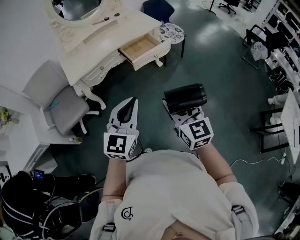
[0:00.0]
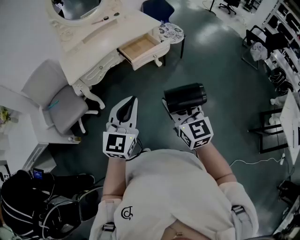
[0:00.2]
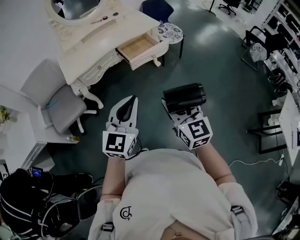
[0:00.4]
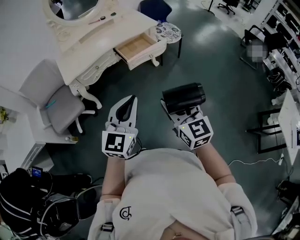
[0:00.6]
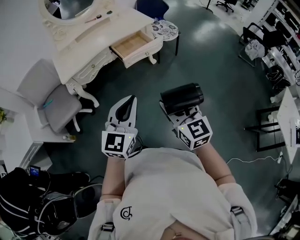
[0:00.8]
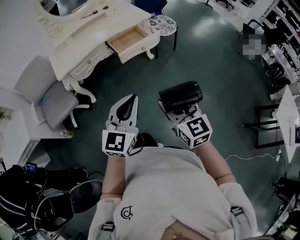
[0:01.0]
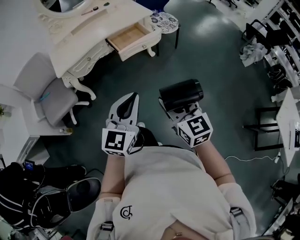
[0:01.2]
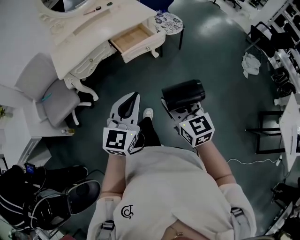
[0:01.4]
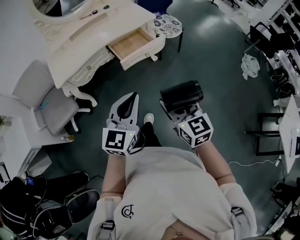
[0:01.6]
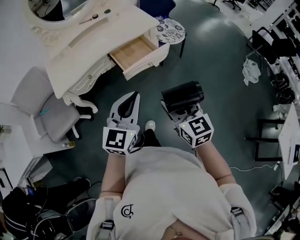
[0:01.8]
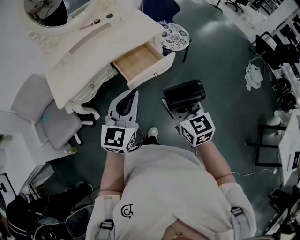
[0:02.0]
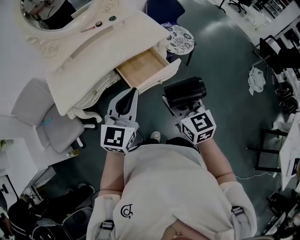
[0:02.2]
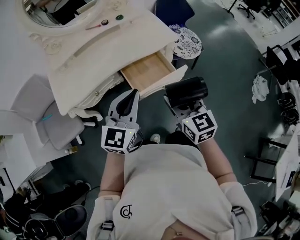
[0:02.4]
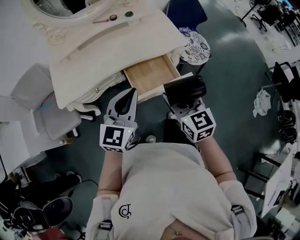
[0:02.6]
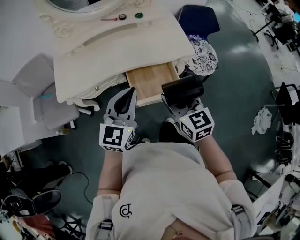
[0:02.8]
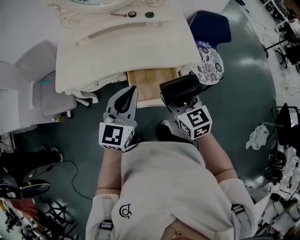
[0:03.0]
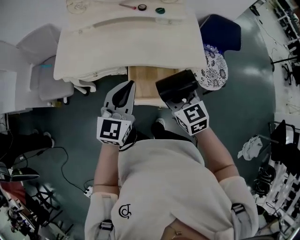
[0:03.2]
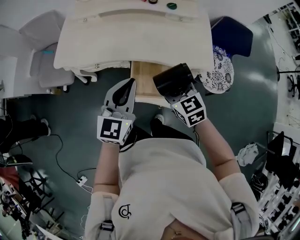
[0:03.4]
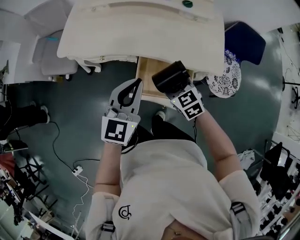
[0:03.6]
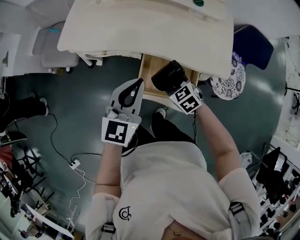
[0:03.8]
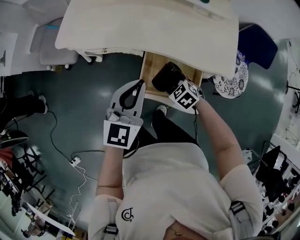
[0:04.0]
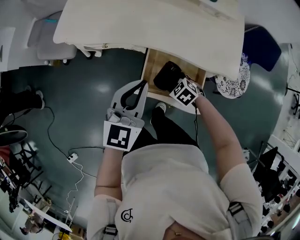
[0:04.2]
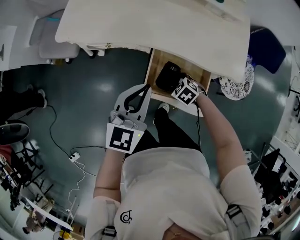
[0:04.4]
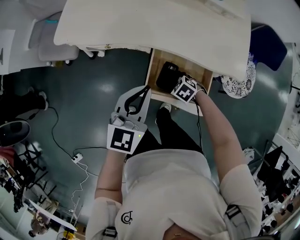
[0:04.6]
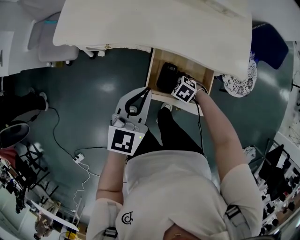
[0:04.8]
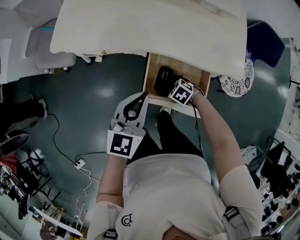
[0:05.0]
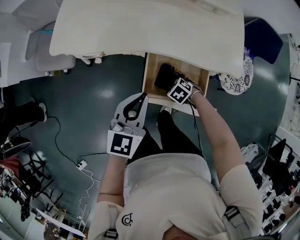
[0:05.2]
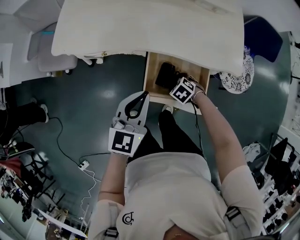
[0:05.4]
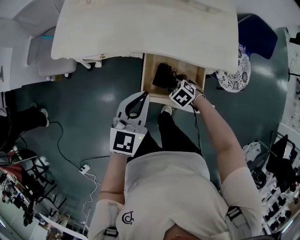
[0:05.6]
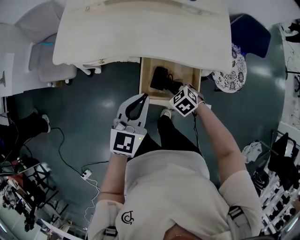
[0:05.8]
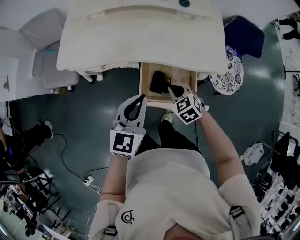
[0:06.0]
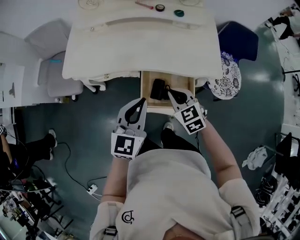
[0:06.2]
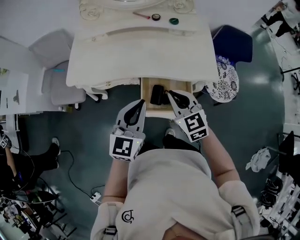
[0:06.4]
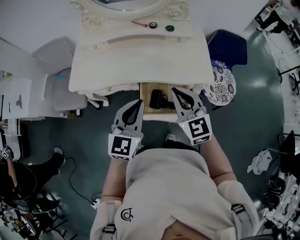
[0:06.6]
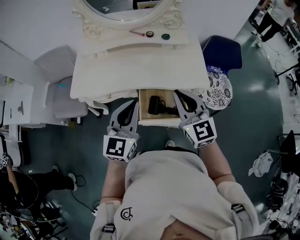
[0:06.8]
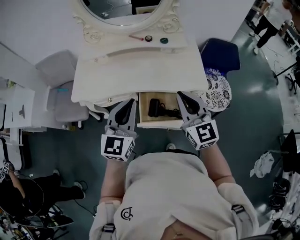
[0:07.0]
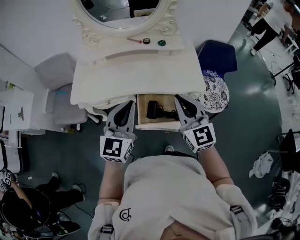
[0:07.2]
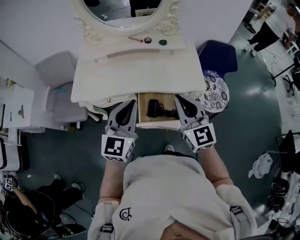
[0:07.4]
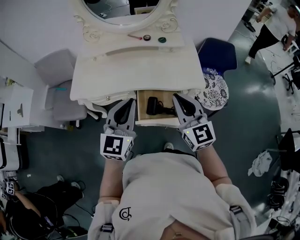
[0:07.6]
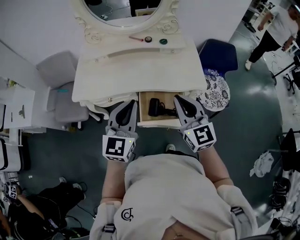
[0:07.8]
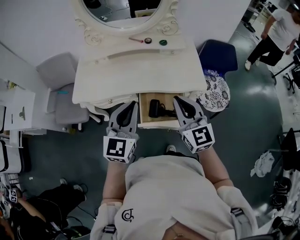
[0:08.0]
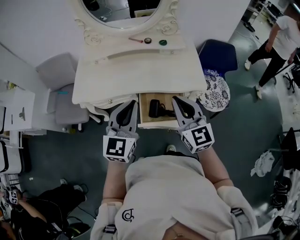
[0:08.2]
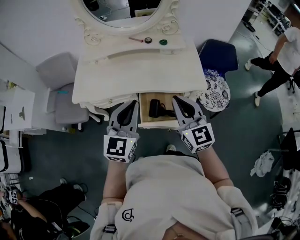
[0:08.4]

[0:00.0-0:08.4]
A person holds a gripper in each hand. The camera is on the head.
0:00.0 to 0:01.4: The right gripper heads to the right and downward, covering approximately 10 cm; the left gripper heads to the right, covering about 10 cm.
0:01.4 to 0:02.8: The pair of grippers is taken forward, some 50 cm. The right gripper rotates approximately 20 degrees.
0:02.8 to 0:04.2: The right gripper heads downward, covering some 35 cm, and points its fingers about 50 degrees further downward. Meanwhile the left gripper is displaced downward by about 10 cm, and changes its angle by approximately 20 degrees.
0:04.2 to 0:05.6: The grippers move only a little.
0:05.6 to 0:07.0: The left gripper goes some 15 cm upward, while the right gripper moves upward, roughly 40 cm, points its fingers roughly 70 degrees further upward, and closes its fingers.
0:07.0 to 0:08.4: The grippers move only a little.

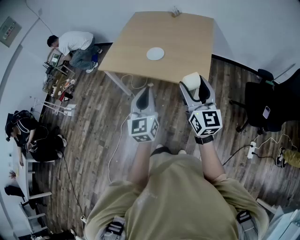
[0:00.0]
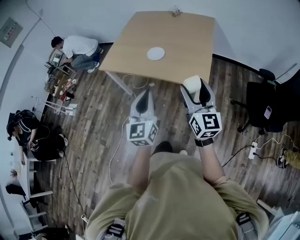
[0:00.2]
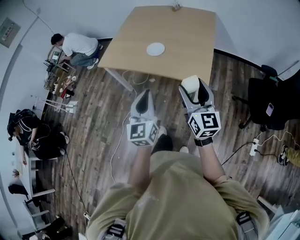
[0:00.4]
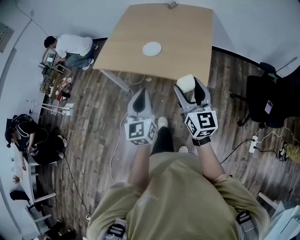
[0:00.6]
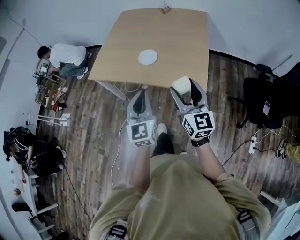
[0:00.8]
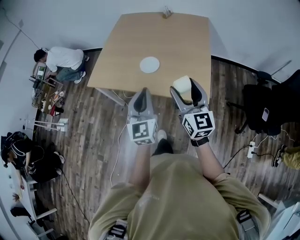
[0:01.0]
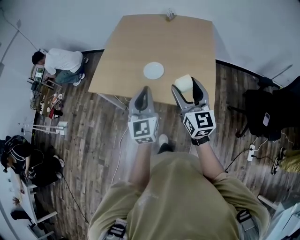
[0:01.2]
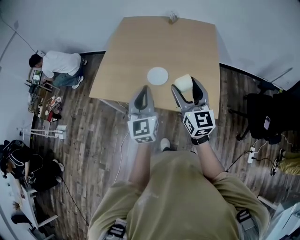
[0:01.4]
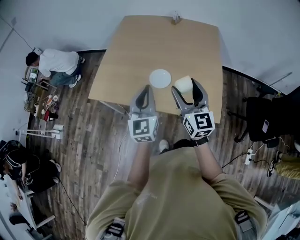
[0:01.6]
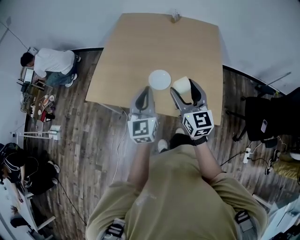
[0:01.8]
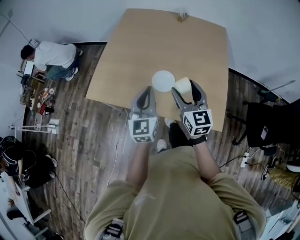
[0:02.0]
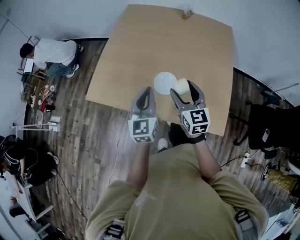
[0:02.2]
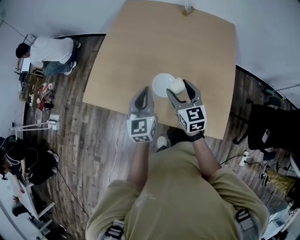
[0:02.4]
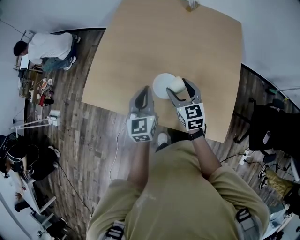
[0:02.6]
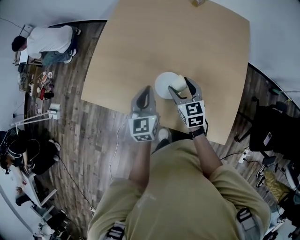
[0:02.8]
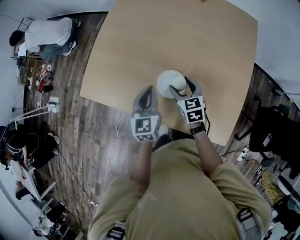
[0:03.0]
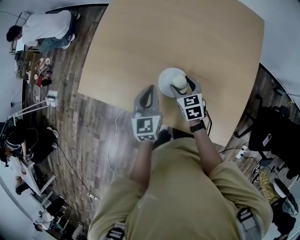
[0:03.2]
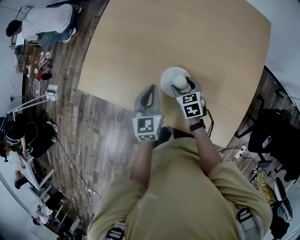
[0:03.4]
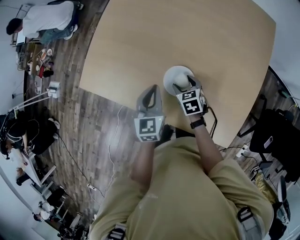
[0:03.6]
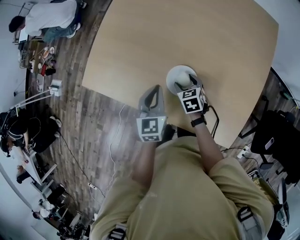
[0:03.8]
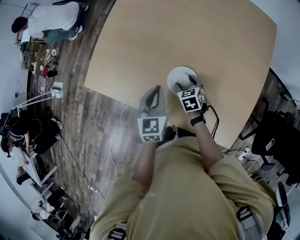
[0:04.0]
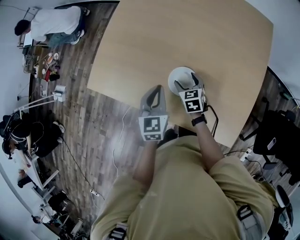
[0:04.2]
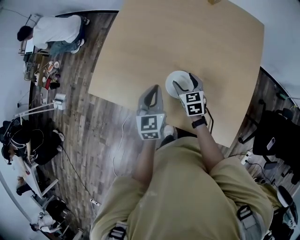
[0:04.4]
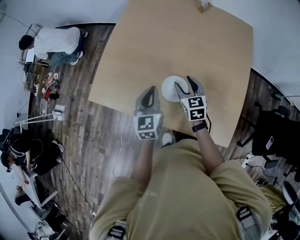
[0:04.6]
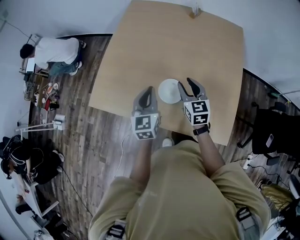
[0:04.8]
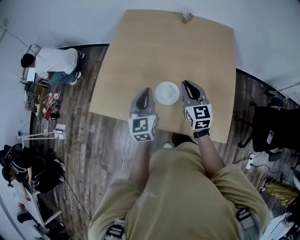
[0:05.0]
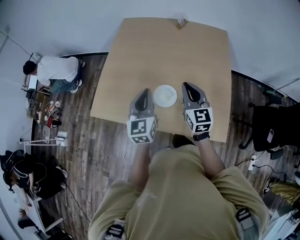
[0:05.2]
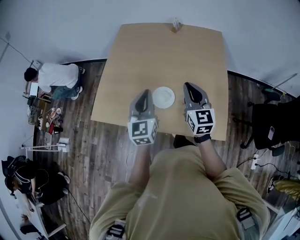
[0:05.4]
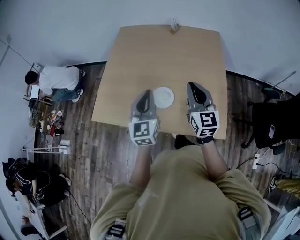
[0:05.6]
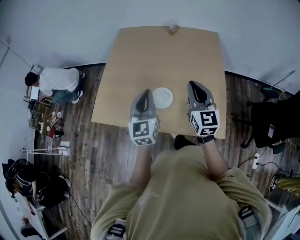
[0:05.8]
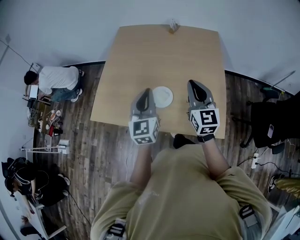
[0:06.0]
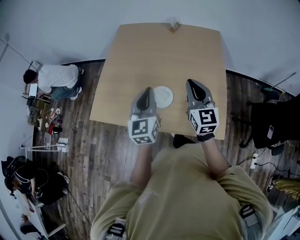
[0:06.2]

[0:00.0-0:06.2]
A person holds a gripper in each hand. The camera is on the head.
0:00.0 to 0:01.6: The left gripper is displaced forward by approximately 35 cm, while the right gripper goes about 35 cm forward and to the left.
0:01.6 to 0:03.2: The right gripper shifts roughly 40 cm downward and forward, and angles its fingers downward, by roughly 50 degrees; the left gripper goes approximately 30 cm forward and downward, and swivels approximately 30 degrees.
0:03.2 to 0:04.6: Both grippers travel together upward, some 10 cm.
0:04.6 to 0:06.2: Both grippers travel together upward, backward and to the right, roughly 25 cm. The right gripper swivels about 30 degrees, and closes its fingers.

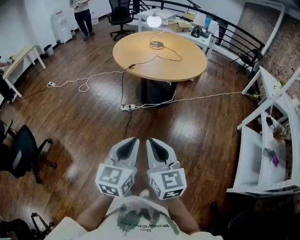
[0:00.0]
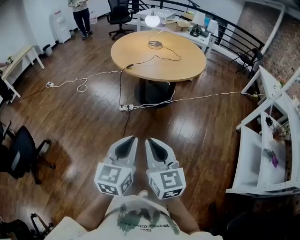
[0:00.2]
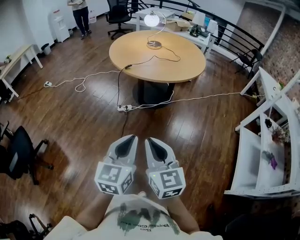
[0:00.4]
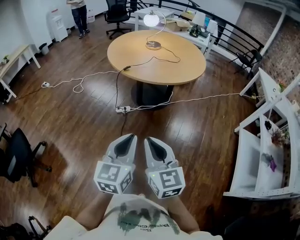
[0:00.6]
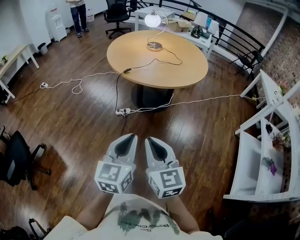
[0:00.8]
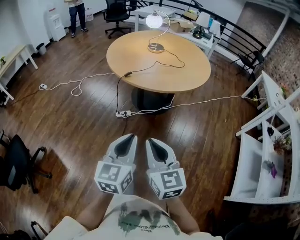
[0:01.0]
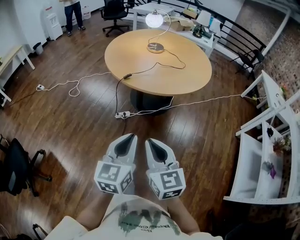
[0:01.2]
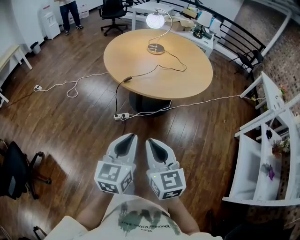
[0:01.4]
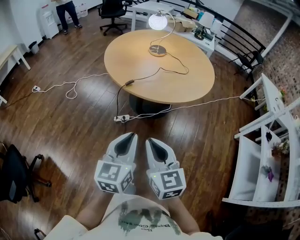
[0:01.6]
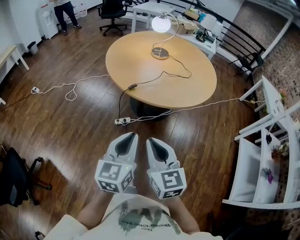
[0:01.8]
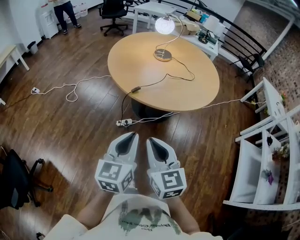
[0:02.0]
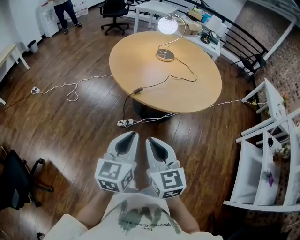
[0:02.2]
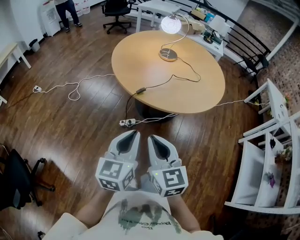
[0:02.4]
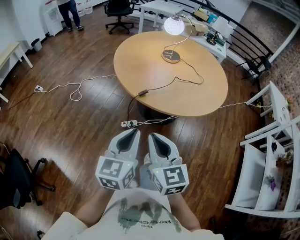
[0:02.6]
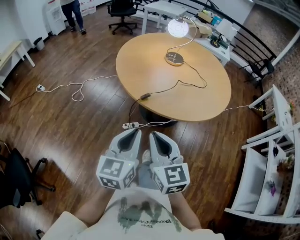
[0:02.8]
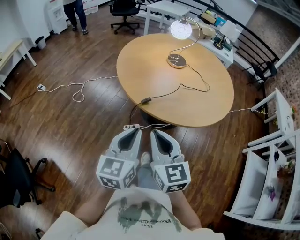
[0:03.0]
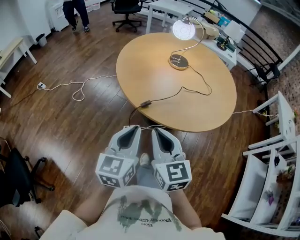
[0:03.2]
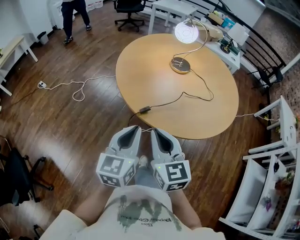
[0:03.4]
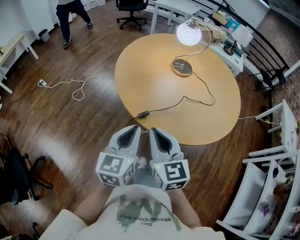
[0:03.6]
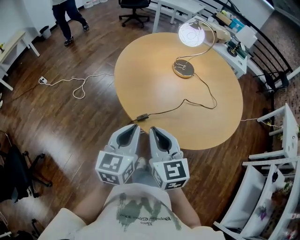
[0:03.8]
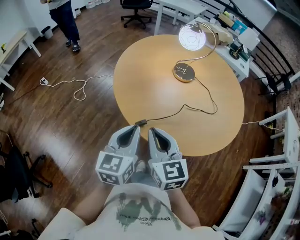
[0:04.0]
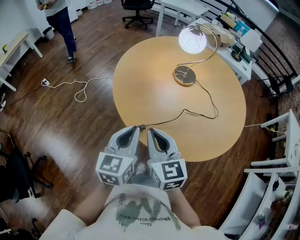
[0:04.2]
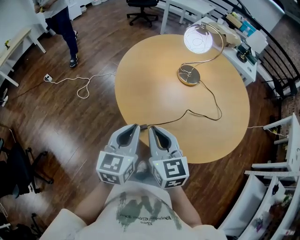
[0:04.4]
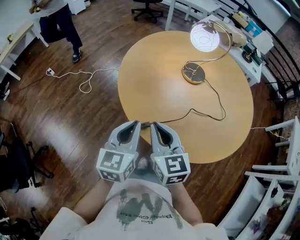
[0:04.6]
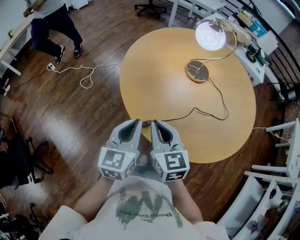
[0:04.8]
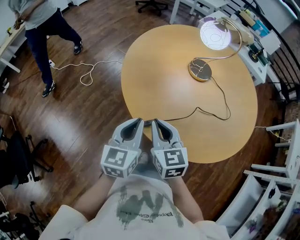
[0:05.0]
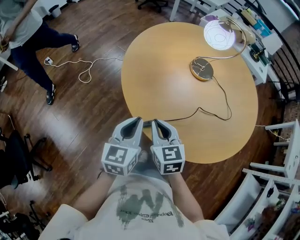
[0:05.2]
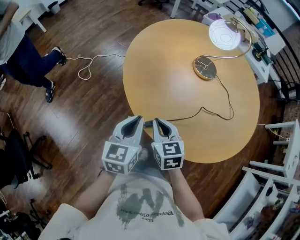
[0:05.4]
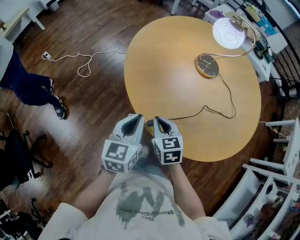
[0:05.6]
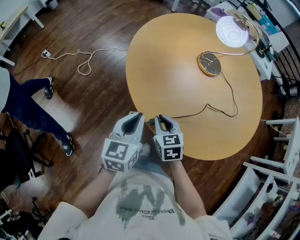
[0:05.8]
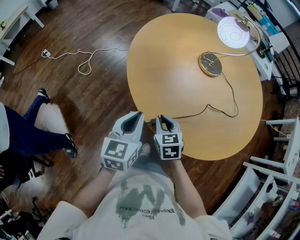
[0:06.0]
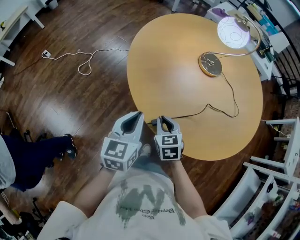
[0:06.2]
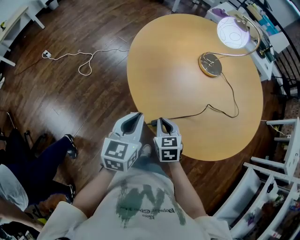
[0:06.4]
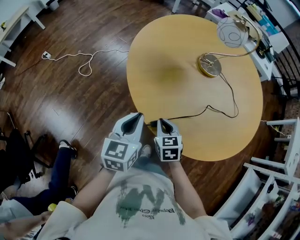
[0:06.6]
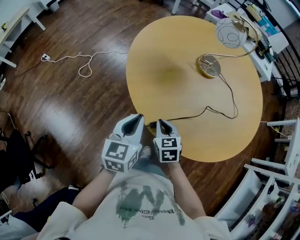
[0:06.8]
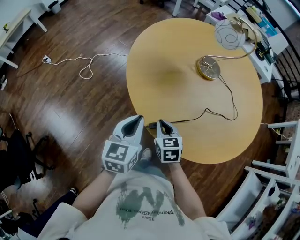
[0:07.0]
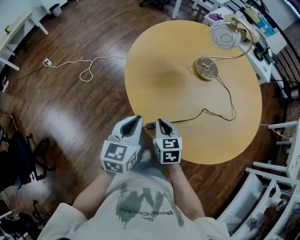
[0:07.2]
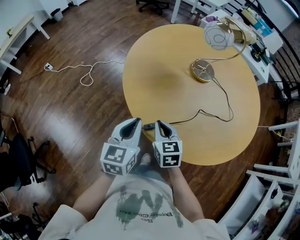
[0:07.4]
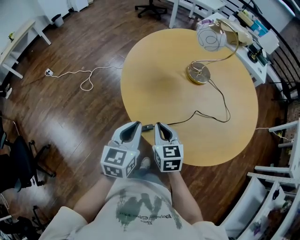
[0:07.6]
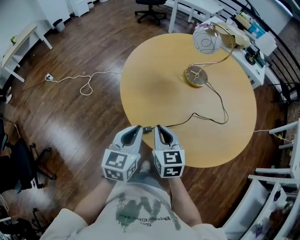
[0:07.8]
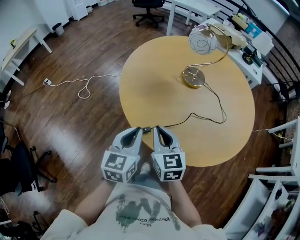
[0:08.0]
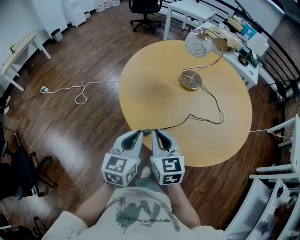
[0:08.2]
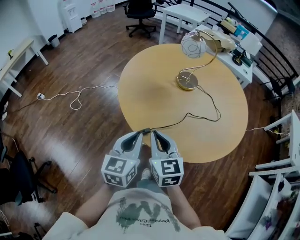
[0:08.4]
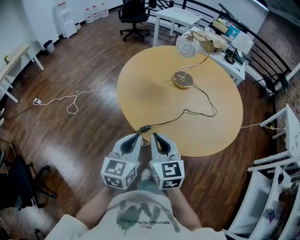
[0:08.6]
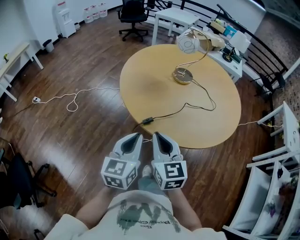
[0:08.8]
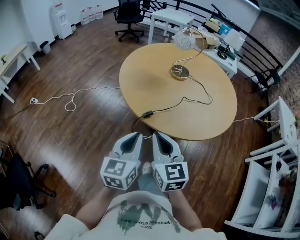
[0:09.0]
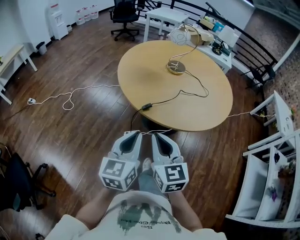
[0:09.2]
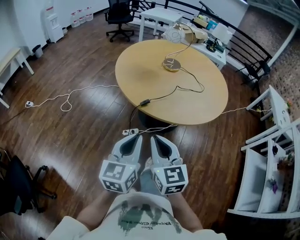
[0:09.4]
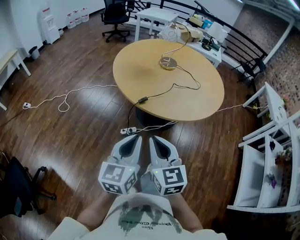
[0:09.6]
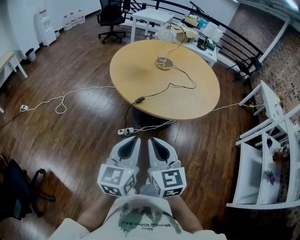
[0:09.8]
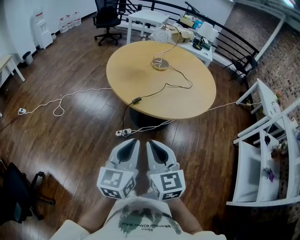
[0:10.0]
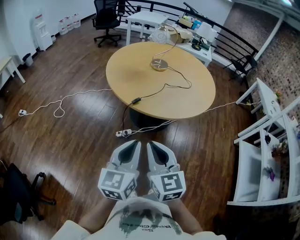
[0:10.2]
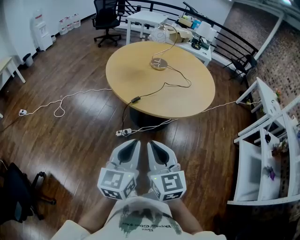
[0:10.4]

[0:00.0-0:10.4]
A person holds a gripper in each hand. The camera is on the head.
0:00.0 to 0:01.4: The grippers both shift forward by some 25 cm.
0:01.4 to 0:03.0: Both grippers move forward and to the left, roughly 25 cm.
0:03.0 to 0:04.4: Both grippers travel together forward, about 20 cm.
0:04.4 to 0:06.0: The right gripper goes some 20 cm downward, and swivels about 30 degrees. Meanwhile the left gripper heads downward, to the left and forward, covering some 10 cm.
0:06.0 to 0:07.4: The right gripper ends up about 5 cm from where it was.
0:07.4 to 0:09.0: The grippers both shift backward and upward by approximately 25 cm. The right gripper changes its angle by roughly 20 degrees.
0:09.0 to 0:10.4: Both grippers travel together backward, about 15 cm.
